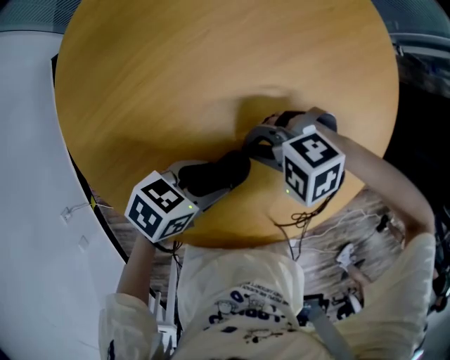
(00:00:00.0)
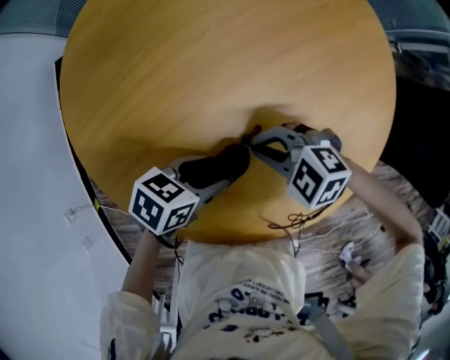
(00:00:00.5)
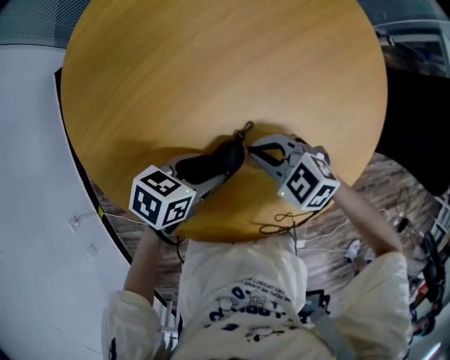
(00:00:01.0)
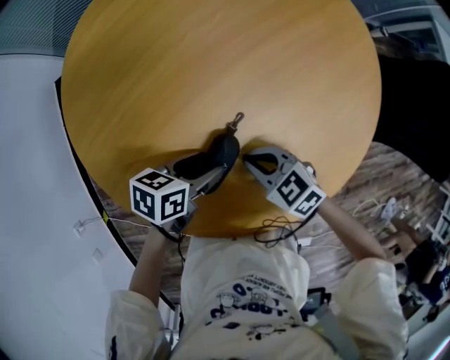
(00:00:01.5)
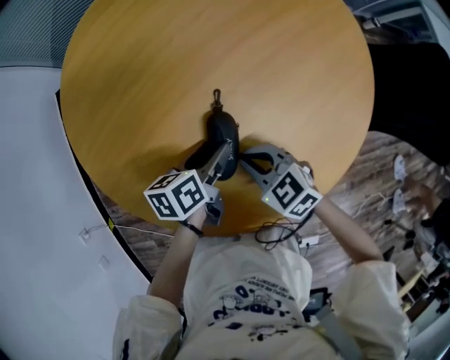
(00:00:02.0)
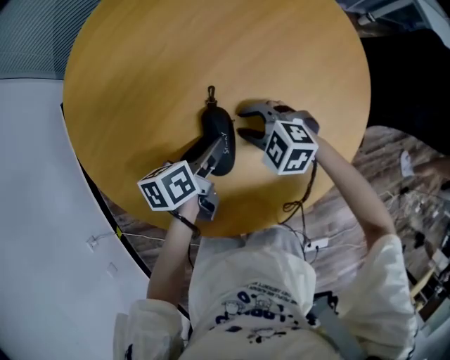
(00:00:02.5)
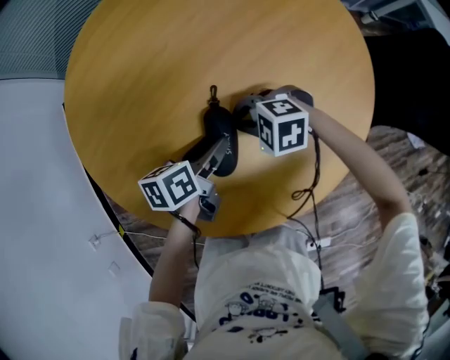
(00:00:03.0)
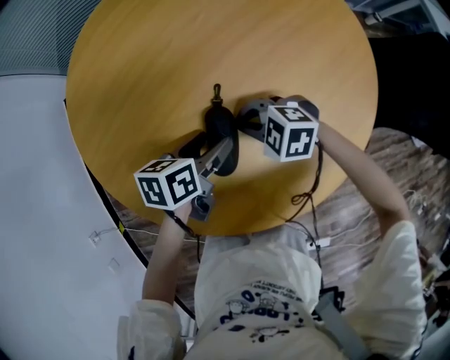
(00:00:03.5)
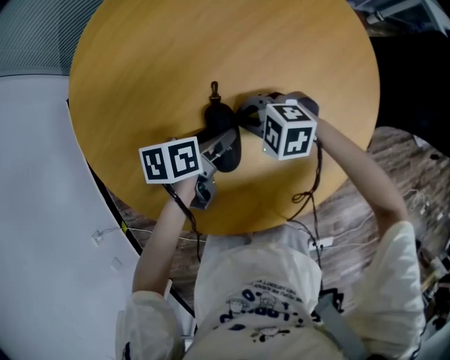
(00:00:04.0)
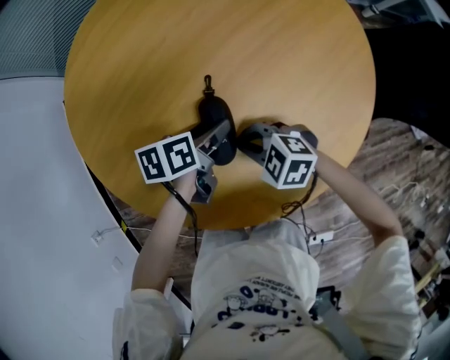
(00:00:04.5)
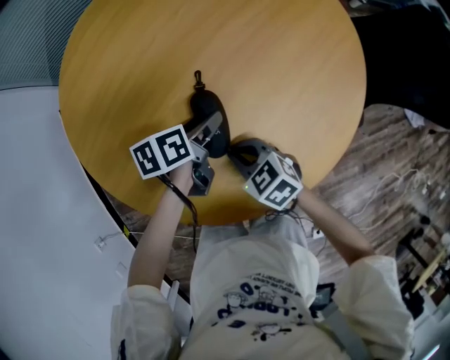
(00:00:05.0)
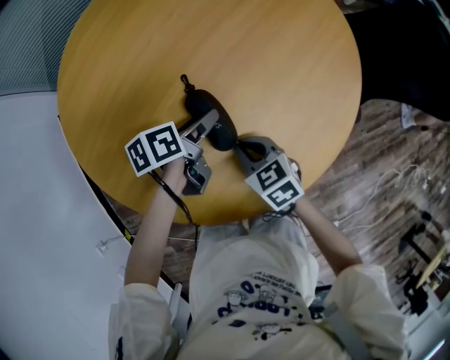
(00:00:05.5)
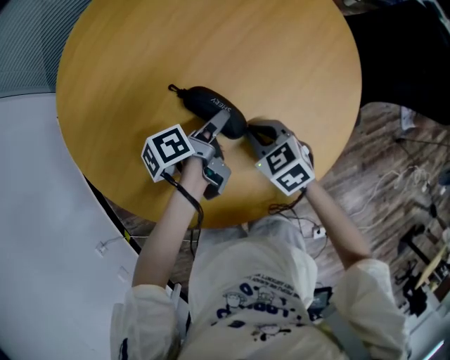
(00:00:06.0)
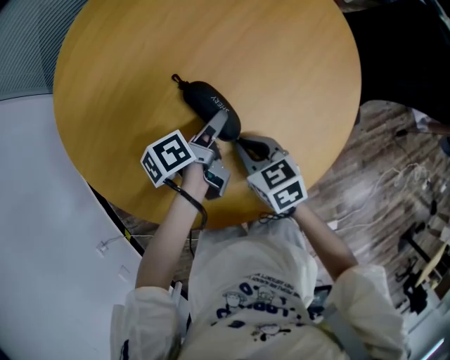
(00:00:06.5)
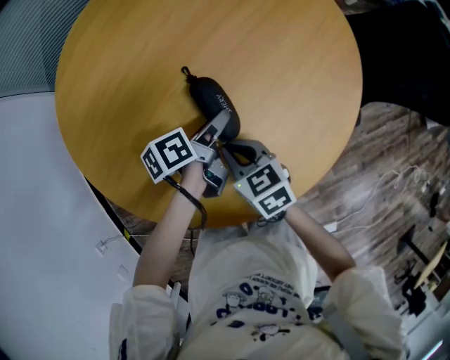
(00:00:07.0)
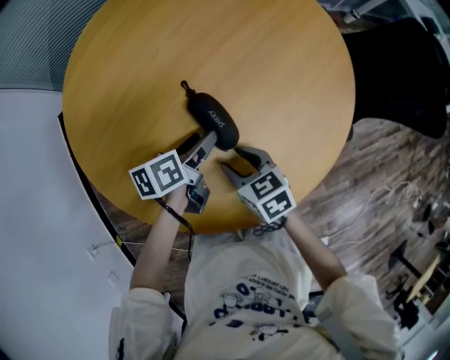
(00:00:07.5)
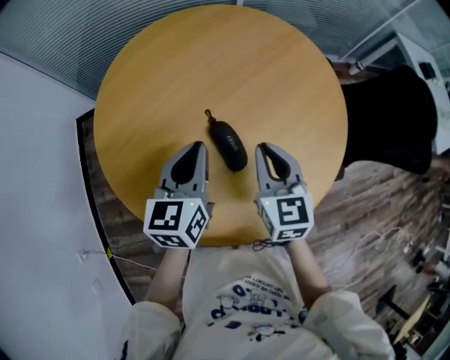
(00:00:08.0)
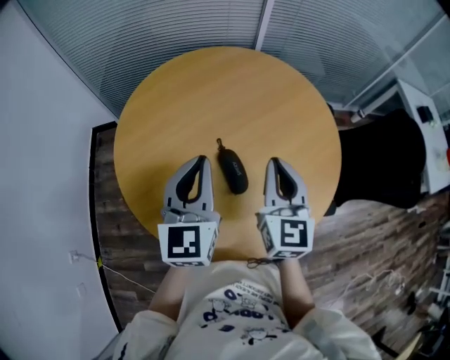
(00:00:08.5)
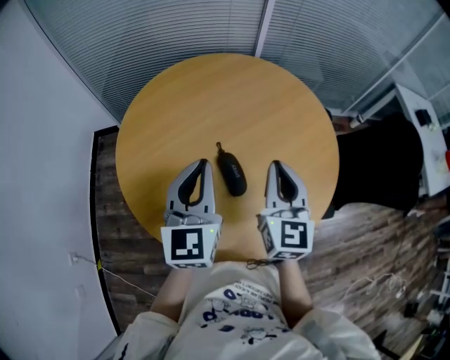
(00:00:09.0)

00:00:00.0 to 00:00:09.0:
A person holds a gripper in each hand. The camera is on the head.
00:00:00.0 to 00:00:02.0: The right gripper changes place by some 5 cm, and rotates around the line of its fingers by approximately 50 degrees, clockwise from behind; the left gripper rotates approximately 40 degrees.
00:00:02.0 to 00:00:04.5: The right gripper opens, then closes again.
00:00:04.5 to 00:00:07.0: The right gripper twists about 40 degrees clockwise, seen from behind. The left gripper swivels some 20 degrees.
00:00:07.0 to 00:00:09.0: Both grippers move upward, some 30 cm. The right gripper angles its fingers upward, by approximately 40 degrees, and opens, then closes once more; the left gripper swivels about 80 degrees, and closes its fingers.

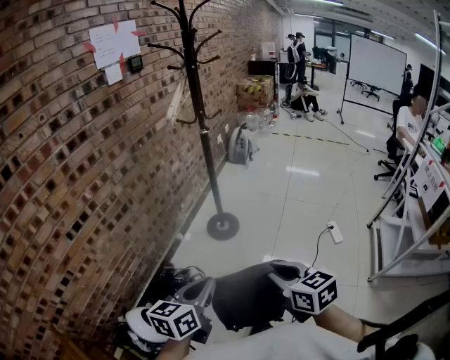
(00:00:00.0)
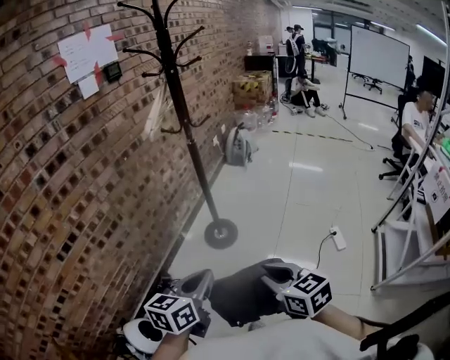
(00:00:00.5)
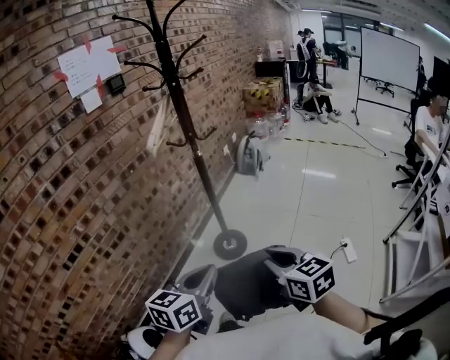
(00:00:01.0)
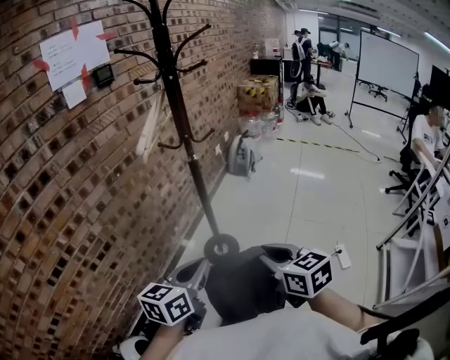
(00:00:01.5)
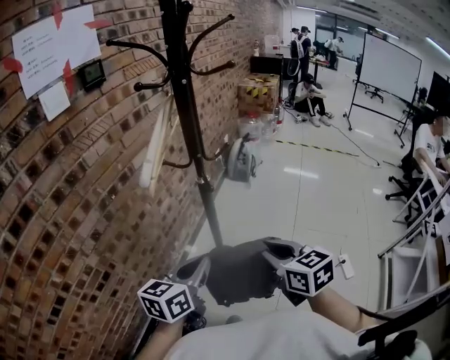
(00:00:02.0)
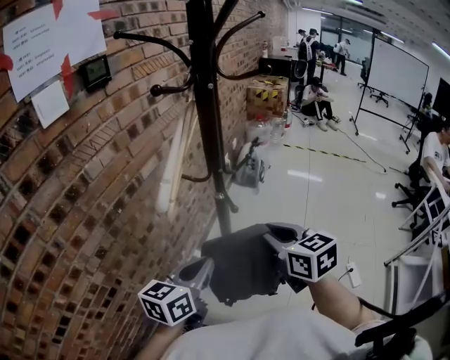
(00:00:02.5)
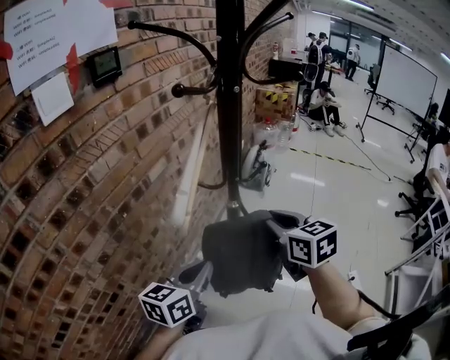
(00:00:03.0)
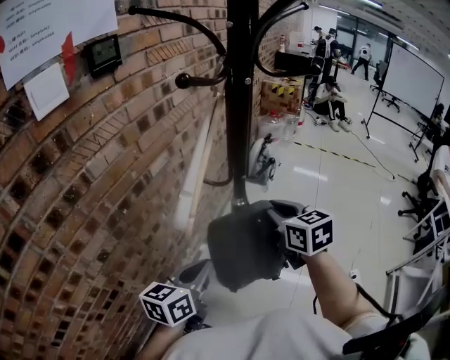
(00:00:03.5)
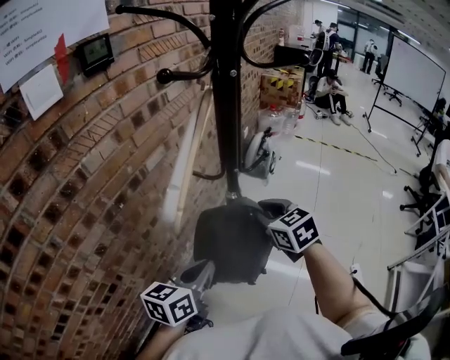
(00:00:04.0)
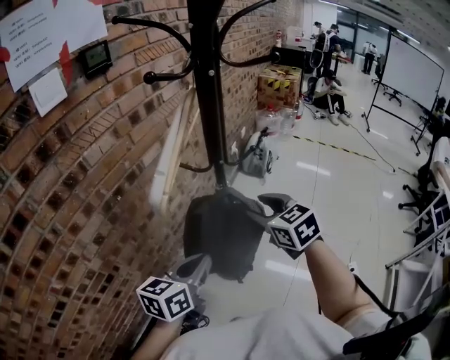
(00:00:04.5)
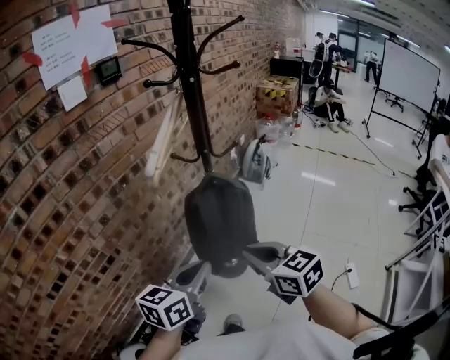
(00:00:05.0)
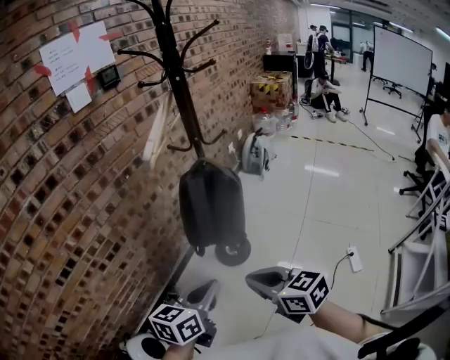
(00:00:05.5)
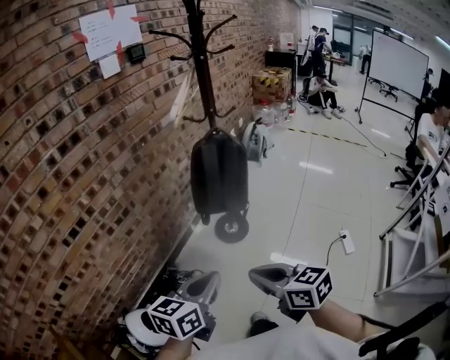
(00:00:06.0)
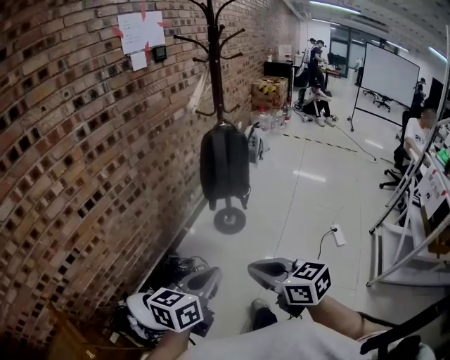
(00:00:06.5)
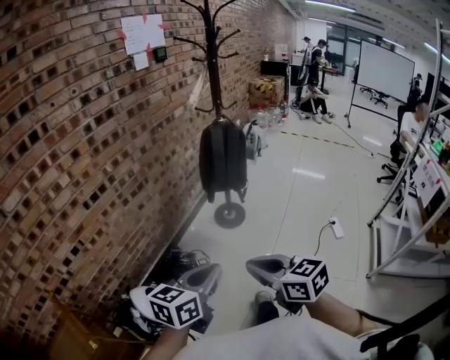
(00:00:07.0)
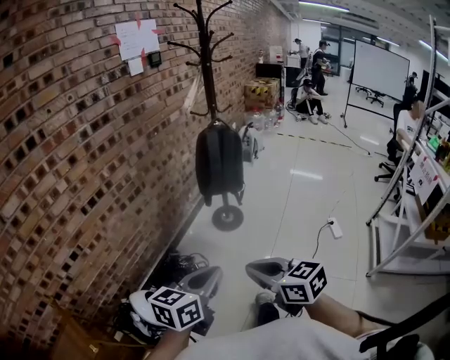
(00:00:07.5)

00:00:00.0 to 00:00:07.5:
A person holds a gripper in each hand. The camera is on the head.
00:00:00.0 to 00:00:02.0: The pair of grippers is taken forward, roughly 50 cm.
00:00:02.0 to 00:00:04.0: The right gripper is displaced forward by some 25 cm; the left gripper moves forward and to the left, approximately 15 cm.
00:00:04.0 to 00:00:05.5: The grippers both shift backward by some 40 cm. The right gripper turns by roughly 30 degrees, and opens and closes again.
00:00:05.5 to 00:00:07.5: The two grippers go some 35 cm backward and to the left.

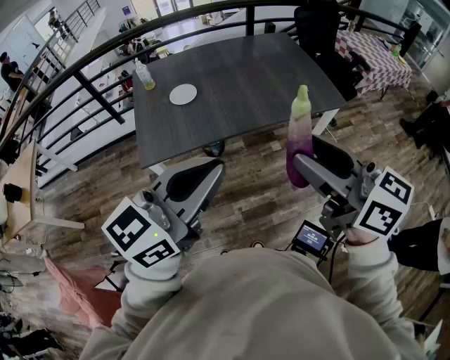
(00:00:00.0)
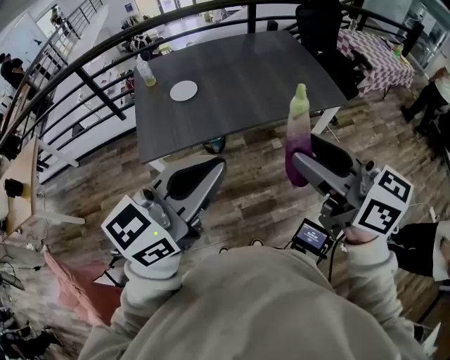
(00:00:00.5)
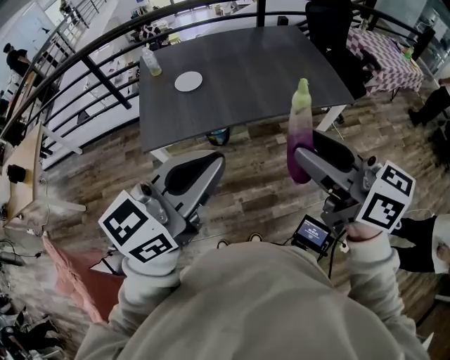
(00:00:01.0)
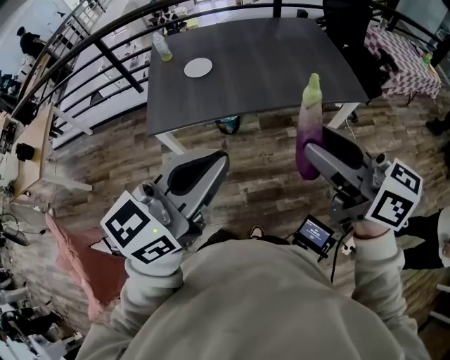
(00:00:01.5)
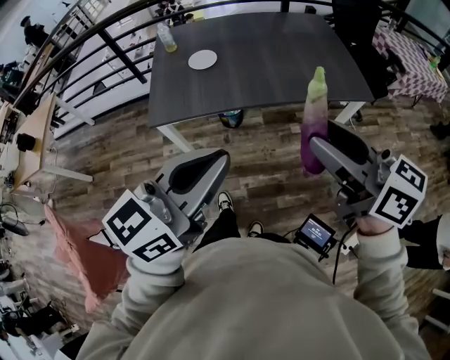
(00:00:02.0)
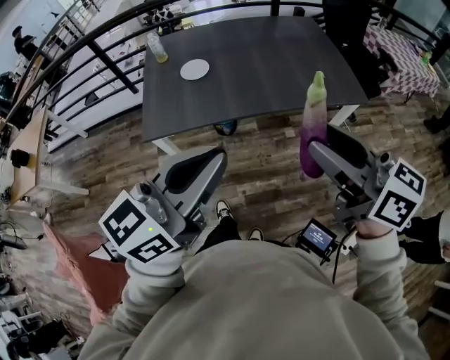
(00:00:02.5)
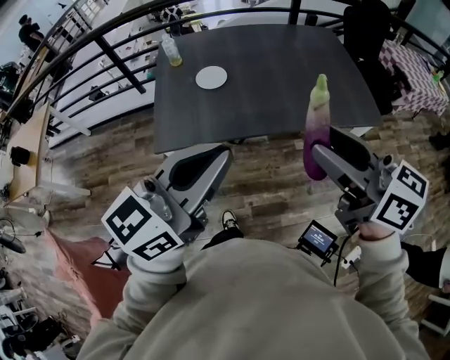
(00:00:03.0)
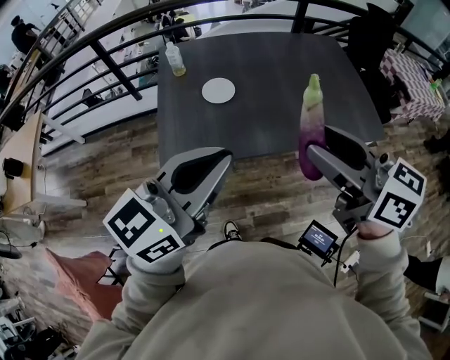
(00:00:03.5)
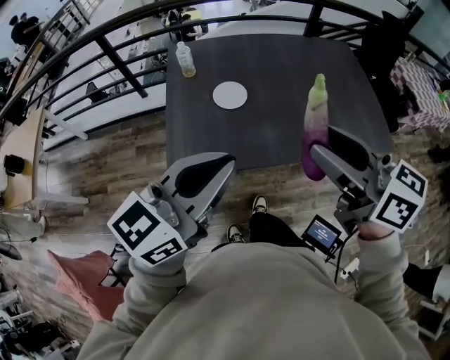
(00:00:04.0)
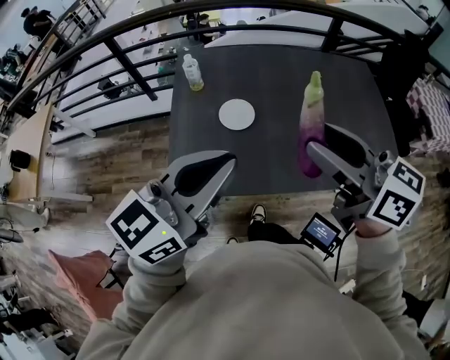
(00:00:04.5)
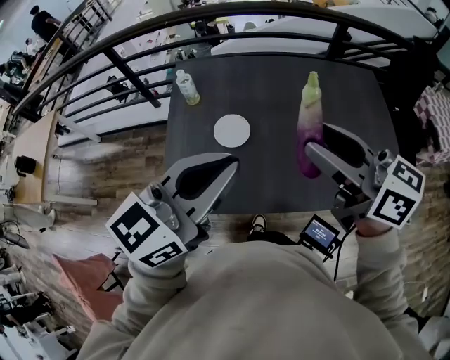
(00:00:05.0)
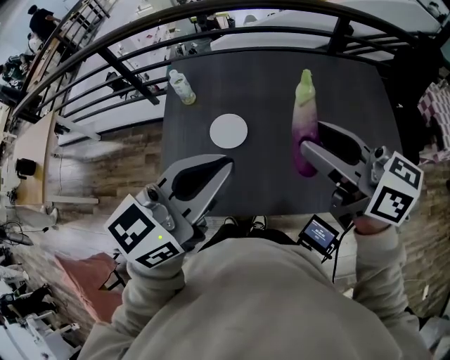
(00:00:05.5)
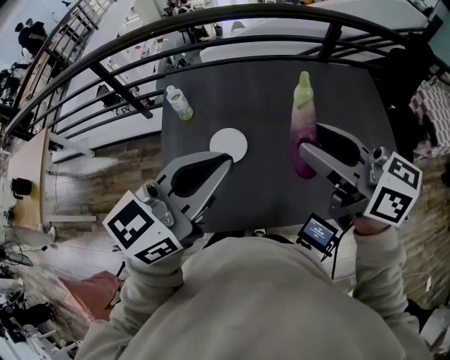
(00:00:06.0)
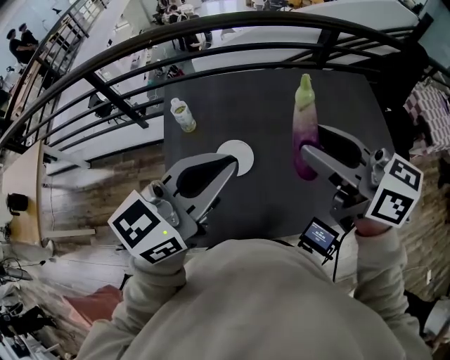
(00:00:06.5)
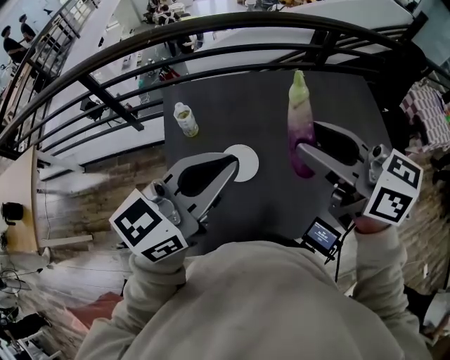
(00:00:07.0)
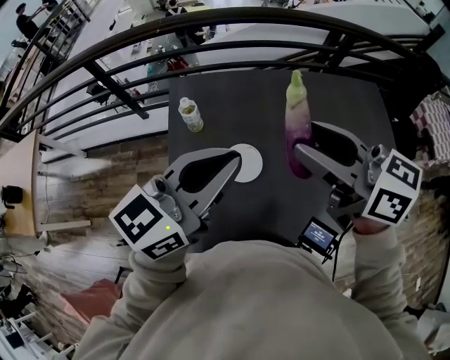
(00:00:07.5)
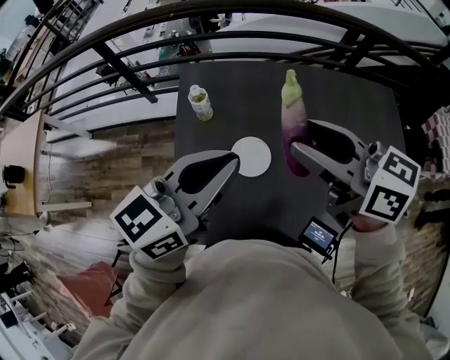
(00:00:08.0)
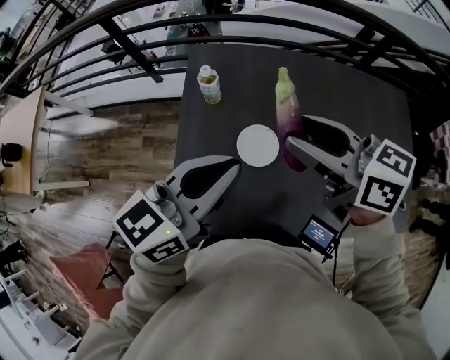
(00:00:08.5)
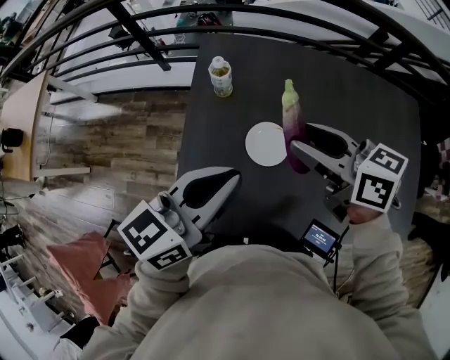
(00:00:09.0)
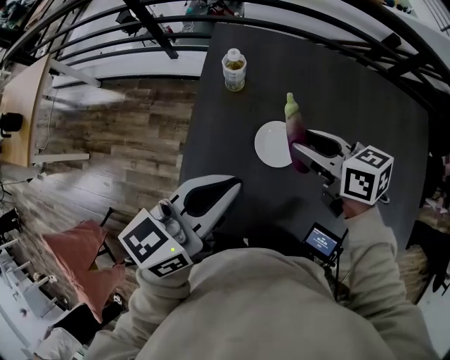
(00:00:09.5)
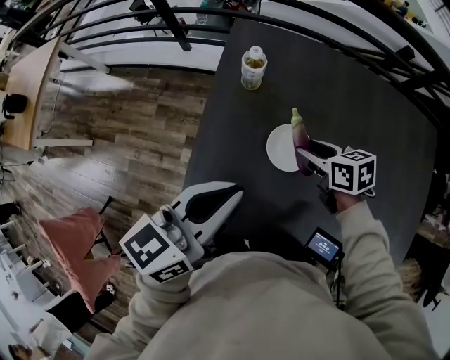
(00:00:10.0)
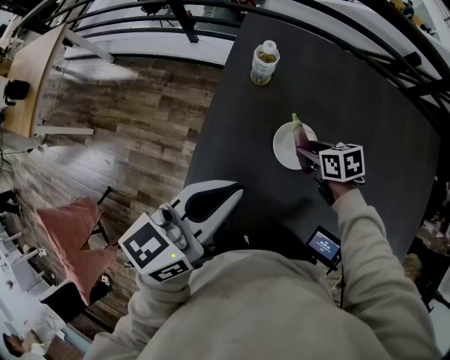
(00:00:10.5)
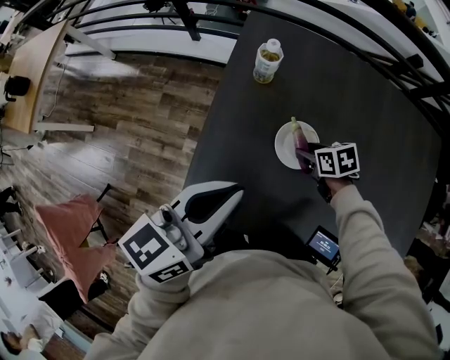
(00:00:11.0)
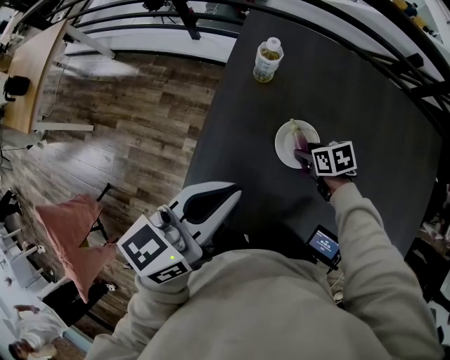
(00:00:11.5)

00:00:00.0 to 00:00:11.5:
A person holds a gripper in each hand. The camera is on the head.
00:00:00.0 to 00:00:02.0: The right gripper moves some 5 cm.
00:00:02.0 to 00:00:04.0: Both grippers move forward and to the left, roughly 30 cm.
00:00:04.0 to 00:00:06.0: Both grippers move forward, roughly 25 cm.
00:00:06.0 to 00:00:07.5: The left gripper shifts by some 10 cm. The right gripper shifts approximately 10 cm to the left and upward.
00:00:07.5 to 00:00:09.5: The right gripper heads downward, covering roughly 25 cm, and swivels some 30 degrees; the left gripper shifts some 15 cm downward and to the left, and turns by roughly 20 degrees.
00:00:09.5 to 00:00:11.5: The left gripper ends up approximately 5 cm from where it was. Meanwhile the right gripper is displaced downward by roughly 20 cm, and points its fingers some 30 degrees further downward.
